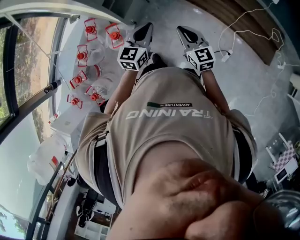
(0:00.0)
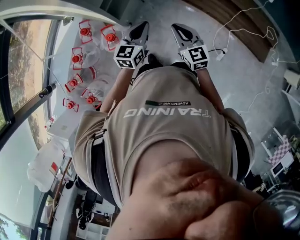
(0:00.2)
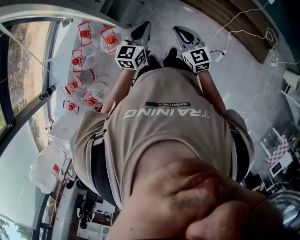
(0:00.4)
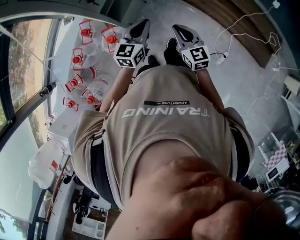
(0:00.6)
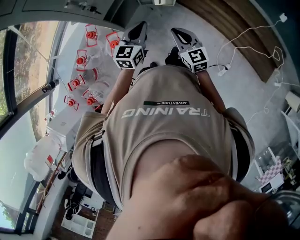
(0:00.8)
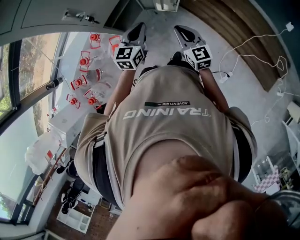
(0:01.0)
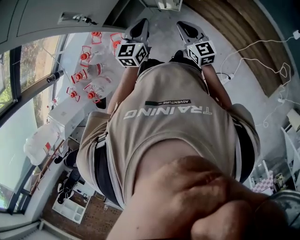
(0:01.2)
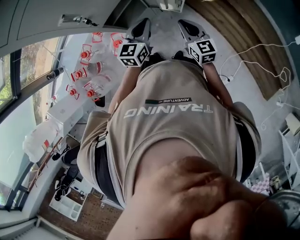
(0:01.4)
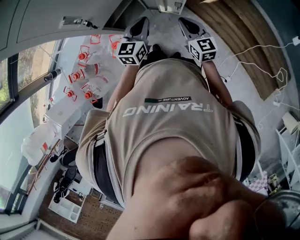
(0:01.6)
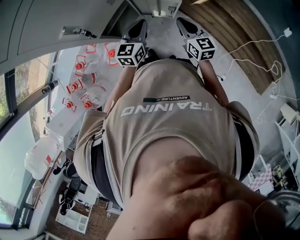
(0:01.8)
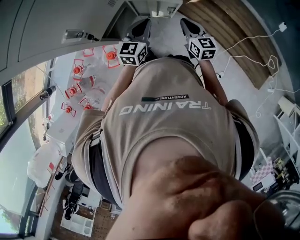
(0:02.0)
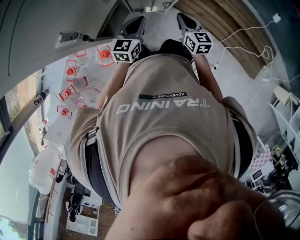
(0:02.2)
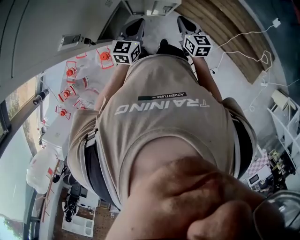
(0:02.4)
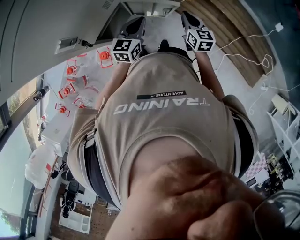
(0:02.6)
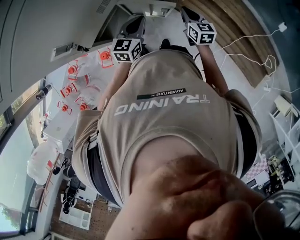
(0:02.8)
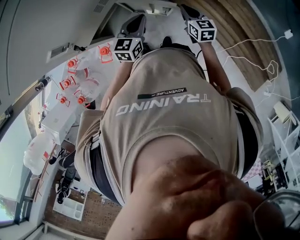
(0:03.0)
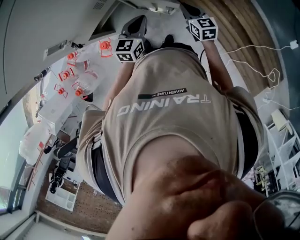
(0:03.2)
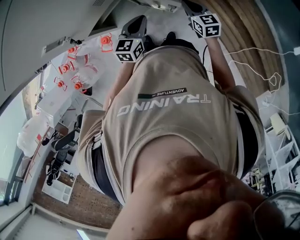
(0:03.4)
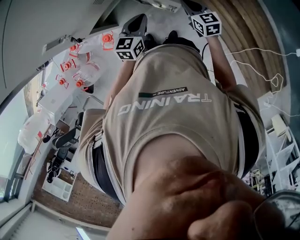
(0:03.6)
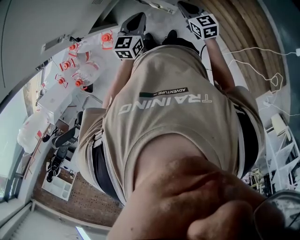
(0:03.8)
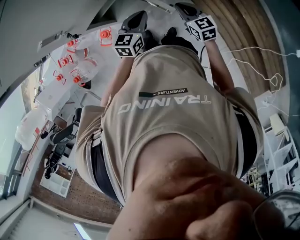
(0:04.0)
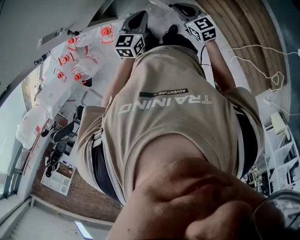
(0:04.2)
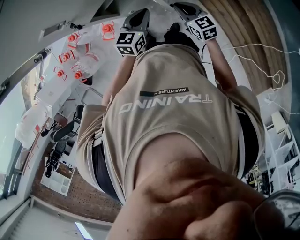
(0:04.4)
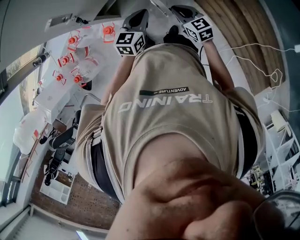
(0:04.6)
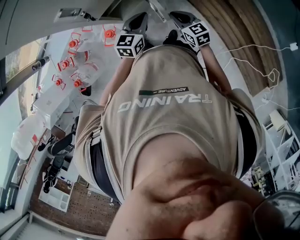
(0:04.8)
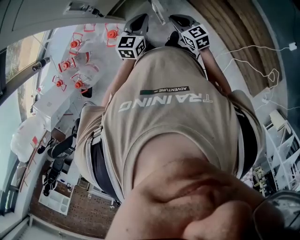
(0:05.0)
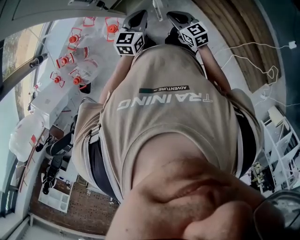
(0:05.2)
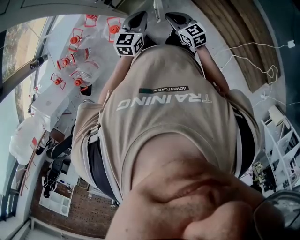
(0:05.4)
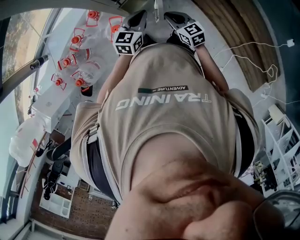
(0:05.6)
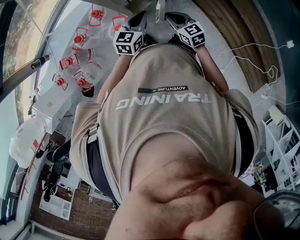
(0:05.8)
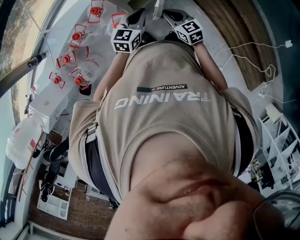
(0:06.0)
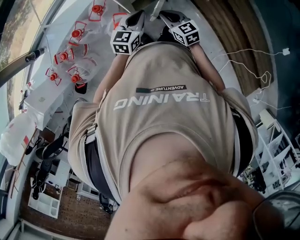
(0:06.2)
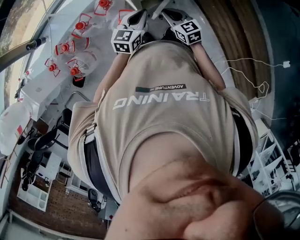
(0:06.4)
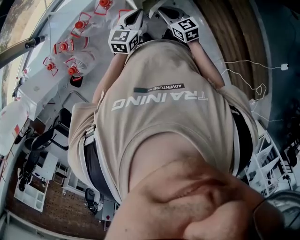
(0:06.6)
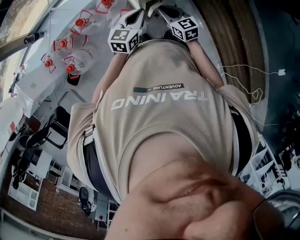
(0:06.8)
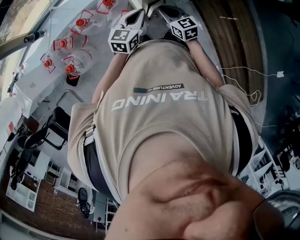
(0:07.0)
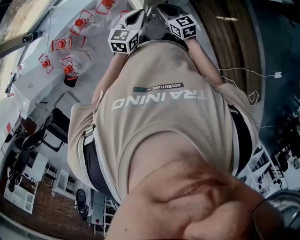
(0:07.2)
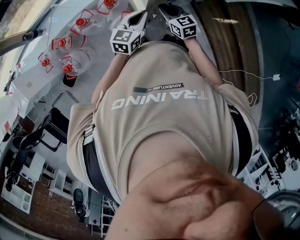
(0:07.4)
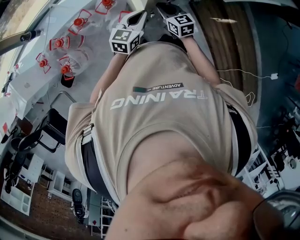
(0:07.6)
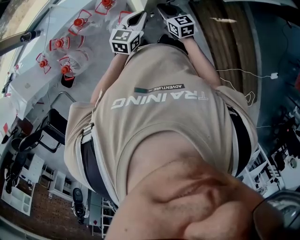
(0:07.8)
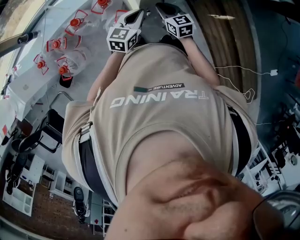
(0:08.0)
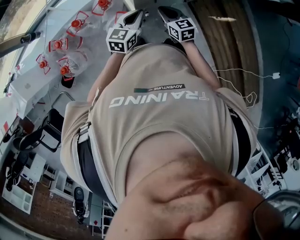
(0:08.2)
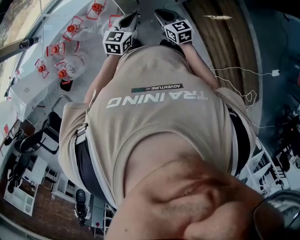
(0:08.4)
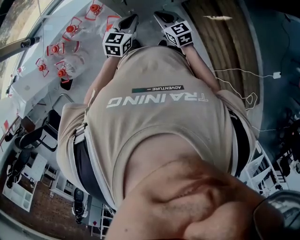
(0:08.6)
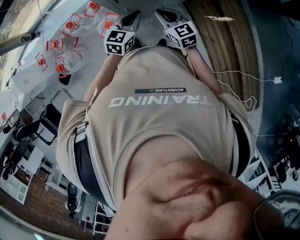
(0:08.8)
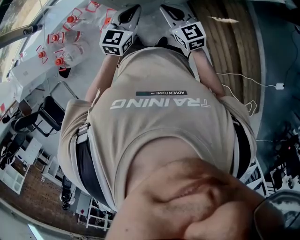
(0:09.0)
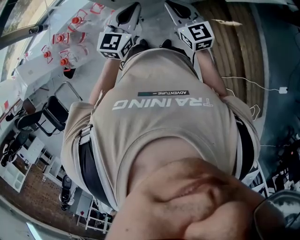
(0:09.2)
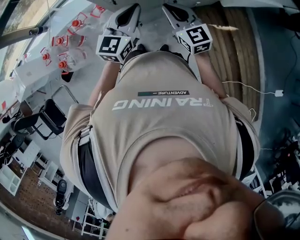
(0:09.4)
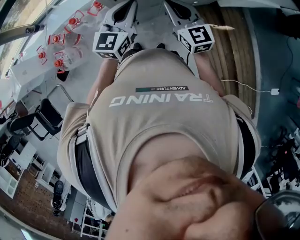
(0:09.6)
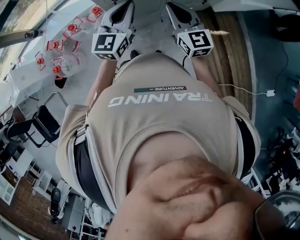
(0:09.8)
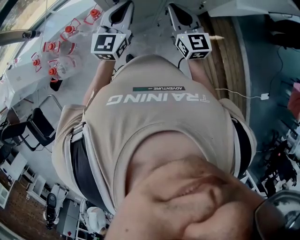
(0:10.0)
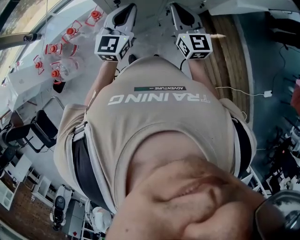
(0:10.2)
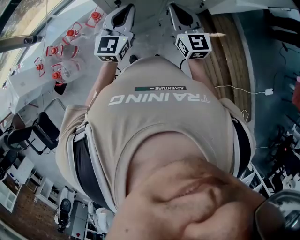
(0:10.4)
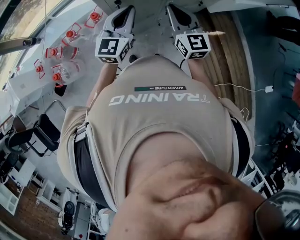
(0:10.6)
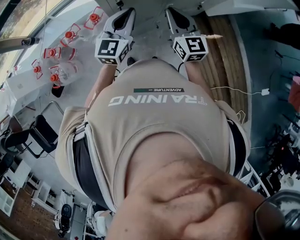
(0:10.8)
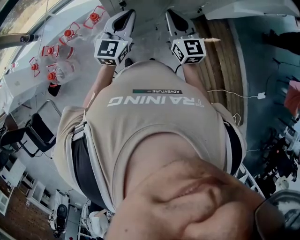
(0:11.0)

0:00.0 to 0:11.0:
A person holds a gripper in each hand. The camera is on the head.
0:00.0 to 0:01.6: The two grippers go some 25 cm forward.
0:01.6 to 0:03.2: The right gripper heads forward and downward, covering roughly 15 cm; the left gripper goes approximately 10 cm forward and downward.
0:03.2 to 0:04.8: The right gripper heads to the left and backward, covering approximately 20 cm; the left gripper travels to the left and backward by about 10 cm.
0:04.8 to 0:06.2: The grippers both shift to the left by roughly 20 cm.
0:06.2 to 0:07.8: The right gripper heads forward and to the left, covering some 10 cm. The left gripper is displaced to the left by about 5 cm.
0:07.8 to 0:09.4: The two grippers go some 25 cm to the right and upward. The right gripper turns by about 20 degrees, while the left gripper turns by about 20 degrees.
0:09.4 to 0:11.0: The left gripper moves roughly 5 cm, while the right gripper travels upward by about 5 cm.

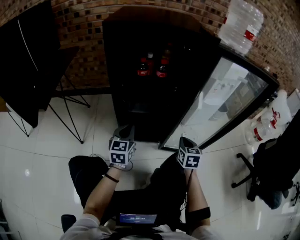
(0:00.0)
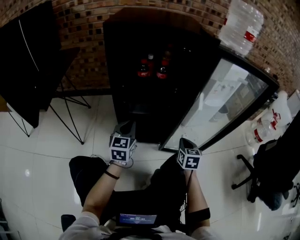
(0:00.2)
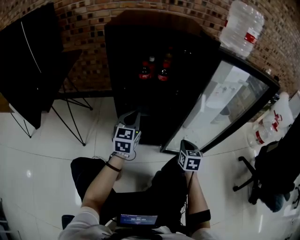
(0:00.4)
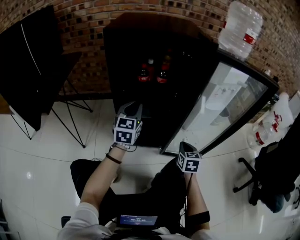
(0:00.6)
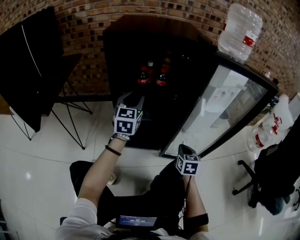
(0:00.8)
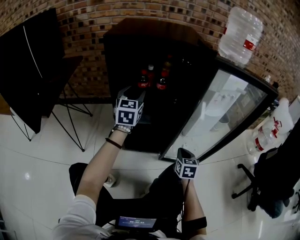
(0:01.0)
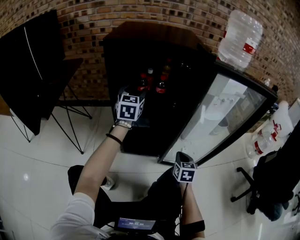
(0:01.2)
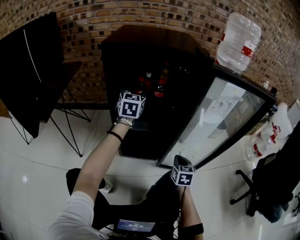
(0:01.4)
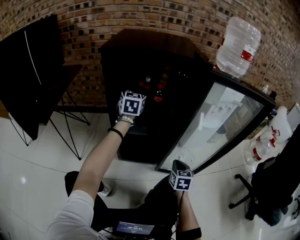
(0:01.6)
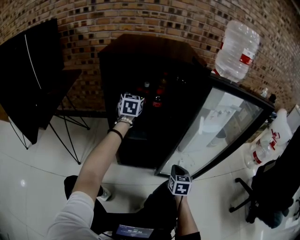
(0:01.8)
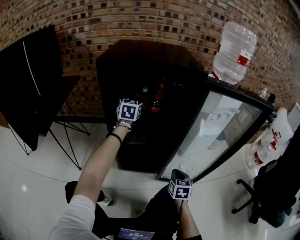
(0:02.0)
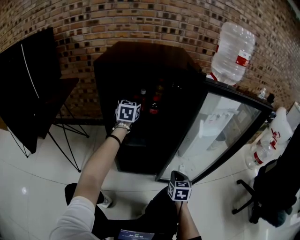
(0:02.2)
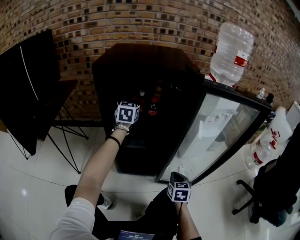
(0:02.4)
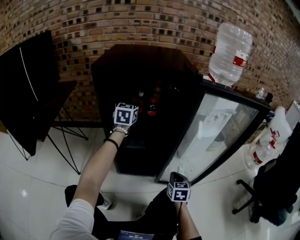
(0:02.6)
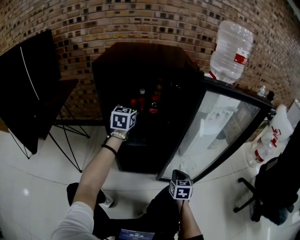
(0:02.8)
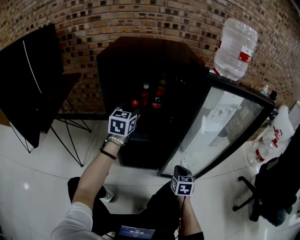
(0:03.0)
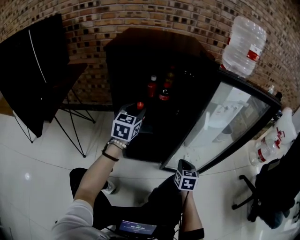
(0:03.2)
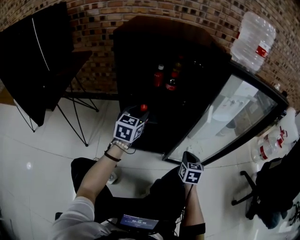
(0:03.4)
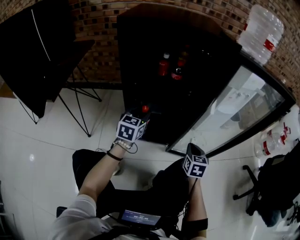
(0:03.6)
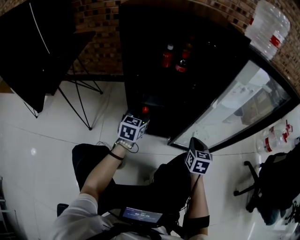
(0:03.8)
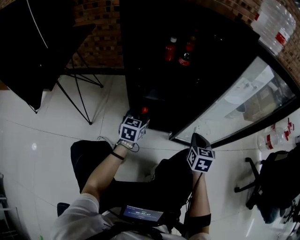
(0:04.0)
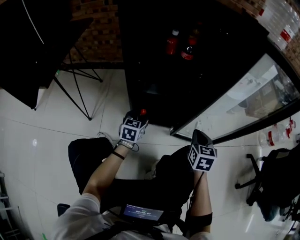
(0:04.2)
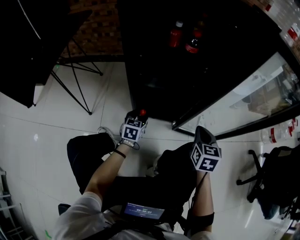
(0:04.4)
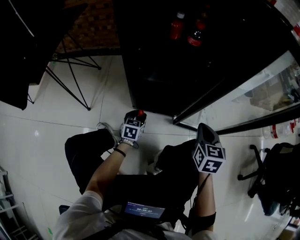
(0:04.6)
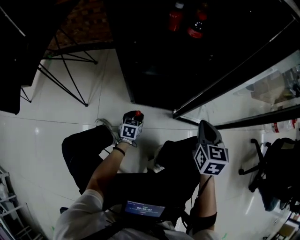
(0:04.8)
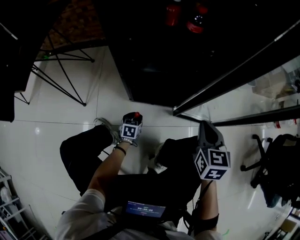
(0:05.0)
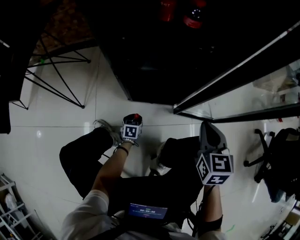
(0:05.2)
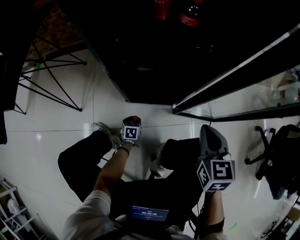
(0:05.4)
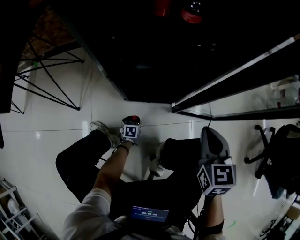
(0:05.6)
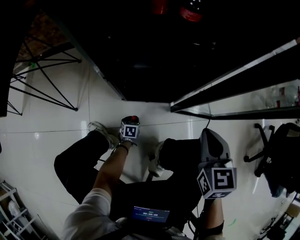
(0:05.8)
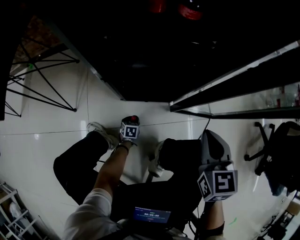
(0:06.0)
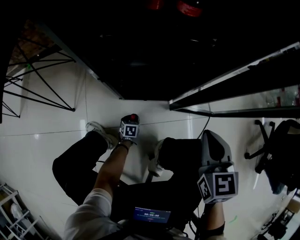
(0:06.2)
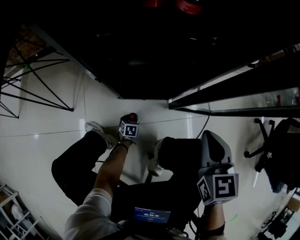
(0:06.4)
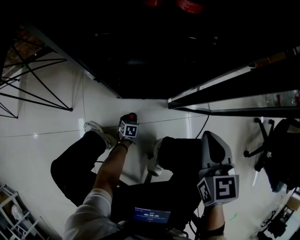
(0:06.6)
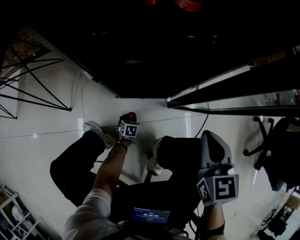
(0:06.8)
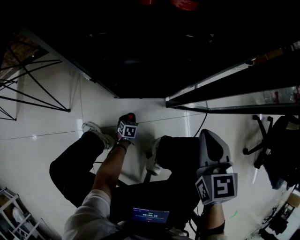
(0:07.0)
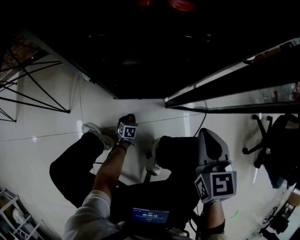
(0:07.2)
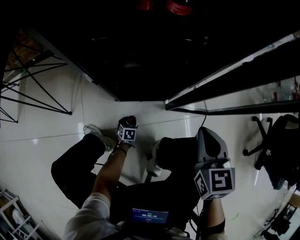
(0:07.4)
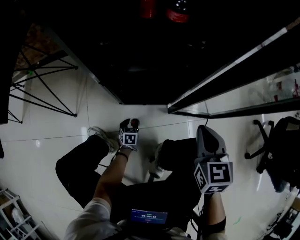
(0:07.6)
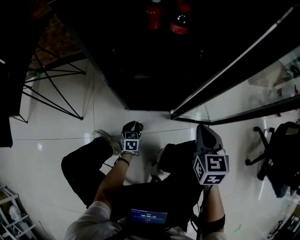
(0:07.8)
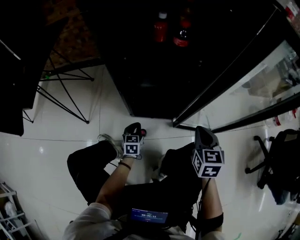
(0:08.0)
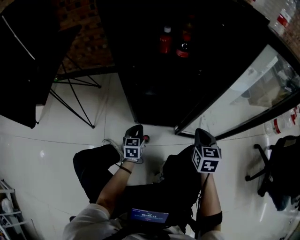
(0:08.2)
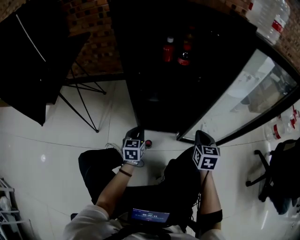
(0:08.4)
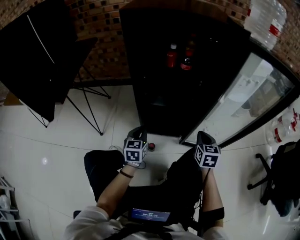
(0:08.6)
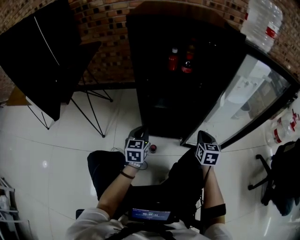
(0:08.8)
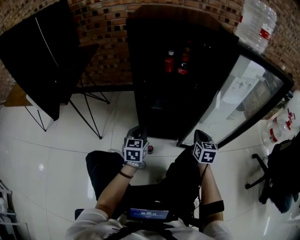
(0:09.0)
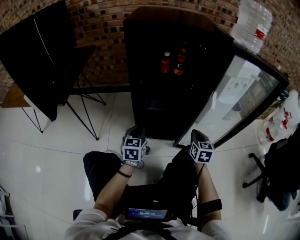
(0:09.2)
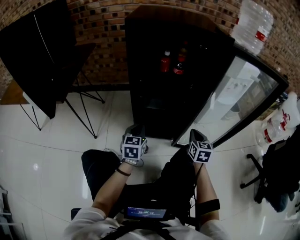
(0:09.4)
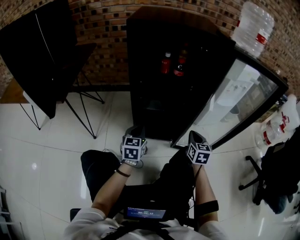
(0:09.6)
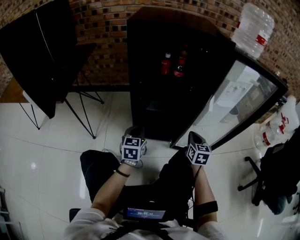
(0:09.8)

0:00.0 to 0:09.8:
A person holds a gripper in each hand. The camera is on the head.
0:00.0 to 0:01.4: The left gripper moves forward and upward, about 25 cm, and opens up.
0:01.4 to 0:02.8: The left gripper closes its fingers.
0:02.8 to 0:04.2: The left gripper moves downward and backward, approximately 35 cm, and turns by about 20 degrees.
0:04.2 to 0:05.6: The left gripper shifts roughly 35 cm downward, and tips its fingers downward by approximately 30 degrees.
0:05.6 to 0:07.0: The left gripper travels downward by about 5 cm.
0:07.0 to 0:08.4: The left gripper travels upward by some 40 cm, tips its fingers upward by some 40 degrees, and closes up.
0:08.4 to 0:09.8: The left gripper heads upward, covering approximately 10 cm.

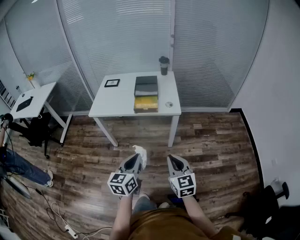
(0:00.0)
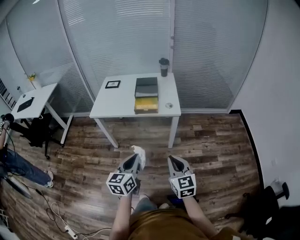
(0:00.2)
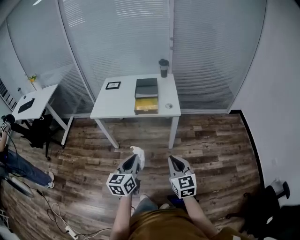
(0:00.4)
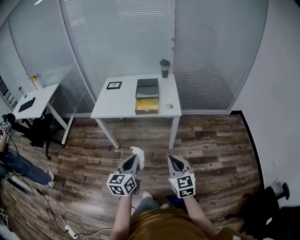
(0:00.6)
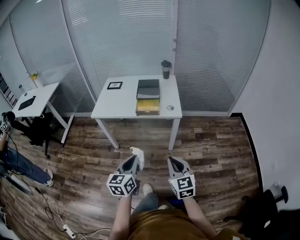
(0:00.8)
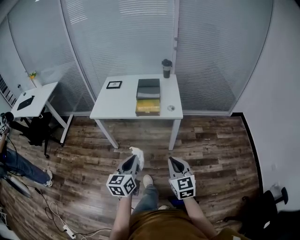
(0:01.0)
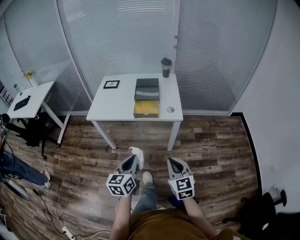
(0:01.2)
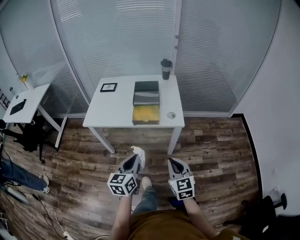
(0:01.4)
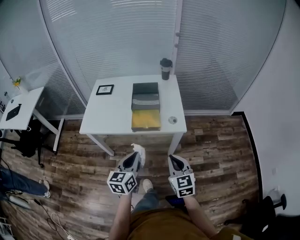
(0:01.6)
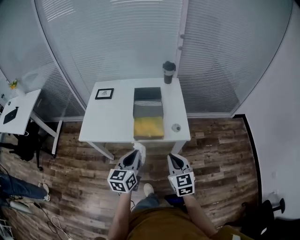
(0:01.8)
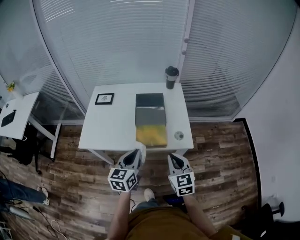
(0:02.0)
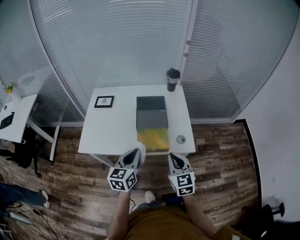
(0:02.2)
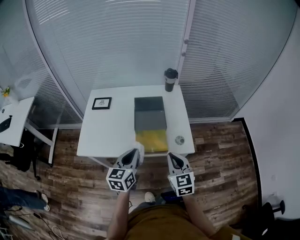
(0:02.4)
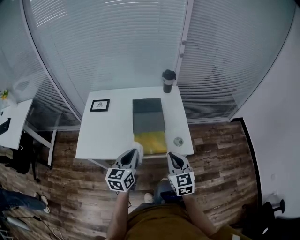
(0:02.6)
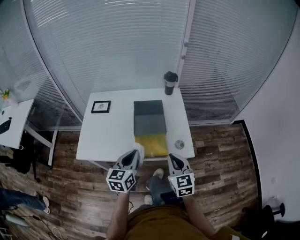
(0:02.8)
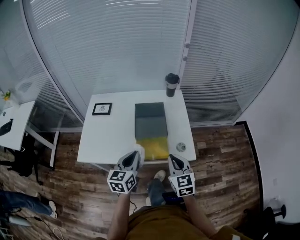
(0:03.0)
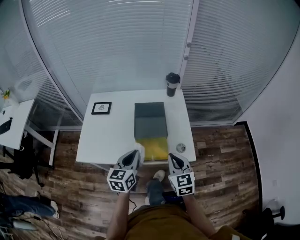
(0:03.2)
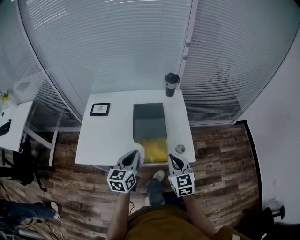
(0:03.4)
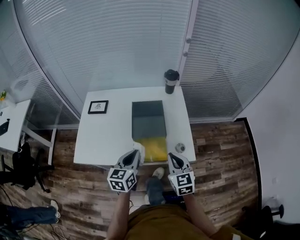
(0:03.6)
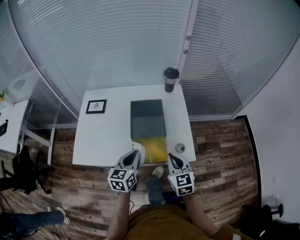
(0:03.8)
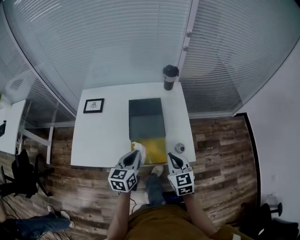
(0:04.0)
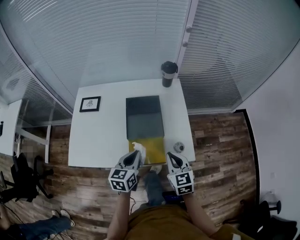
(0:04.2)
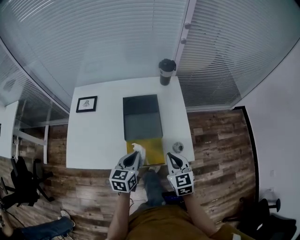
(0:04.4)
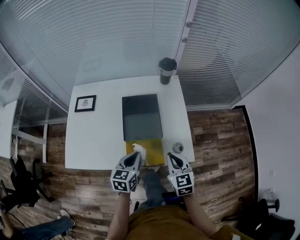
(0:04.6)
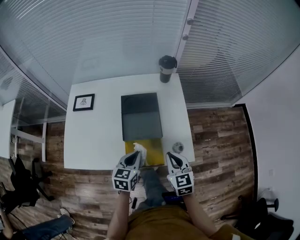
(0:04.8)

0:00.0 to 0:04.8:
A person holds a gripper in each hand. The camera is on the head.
0:00.0 to 0:01.6: The two grippers go about 20 cm forward.
0:01.6 to 0:03.2: Both grippers travel together forward, approximately 20 cm.
0:03.2 to 0:04.8: The grippers both shift downward and forward by some 10 cm.
